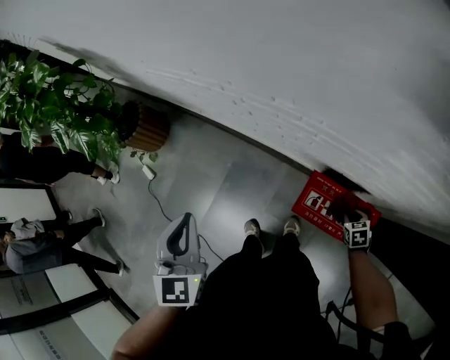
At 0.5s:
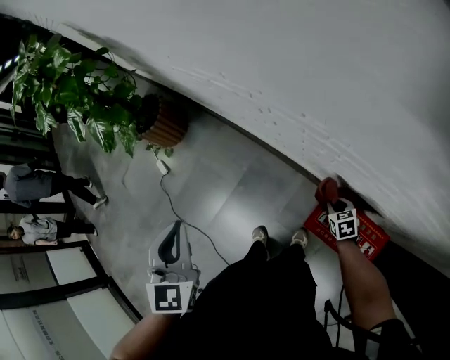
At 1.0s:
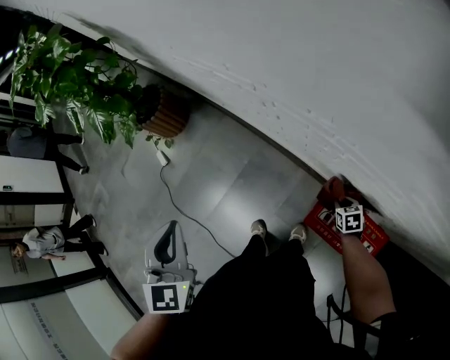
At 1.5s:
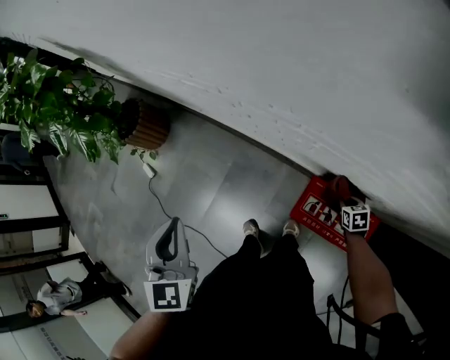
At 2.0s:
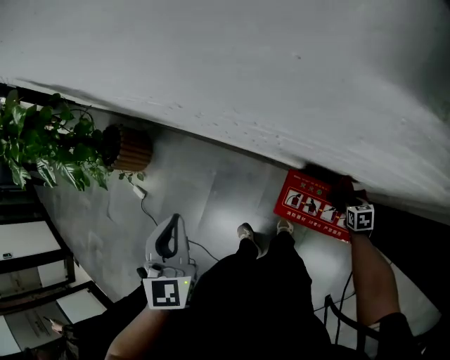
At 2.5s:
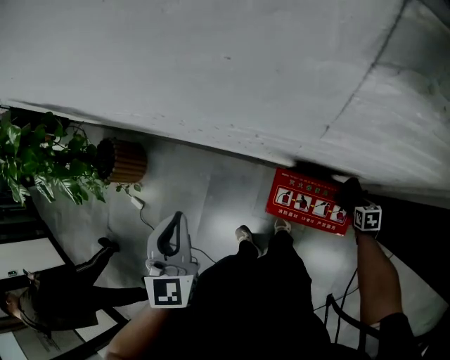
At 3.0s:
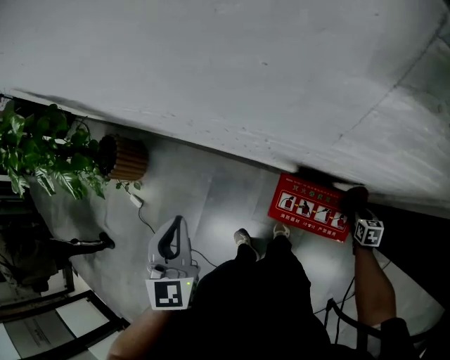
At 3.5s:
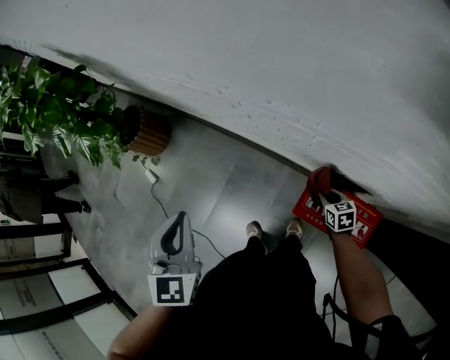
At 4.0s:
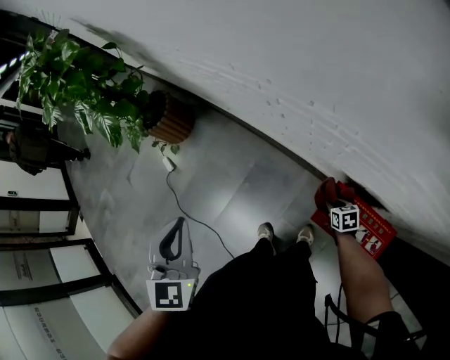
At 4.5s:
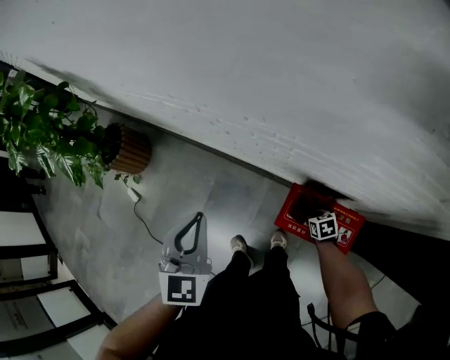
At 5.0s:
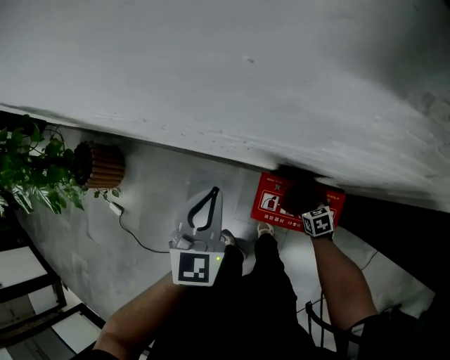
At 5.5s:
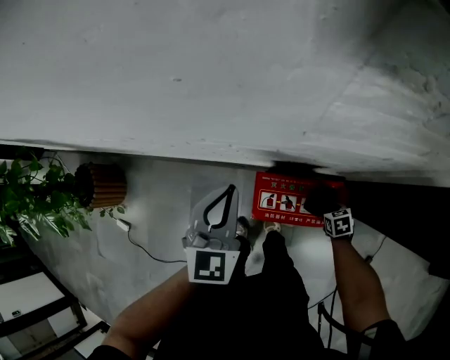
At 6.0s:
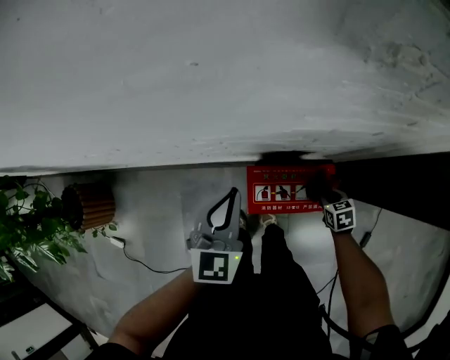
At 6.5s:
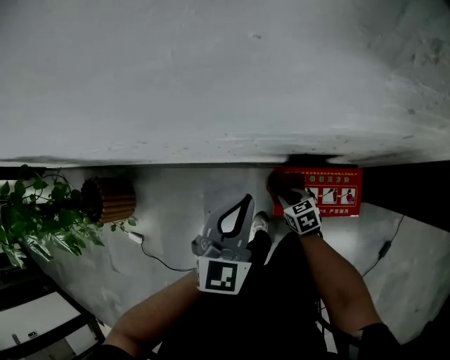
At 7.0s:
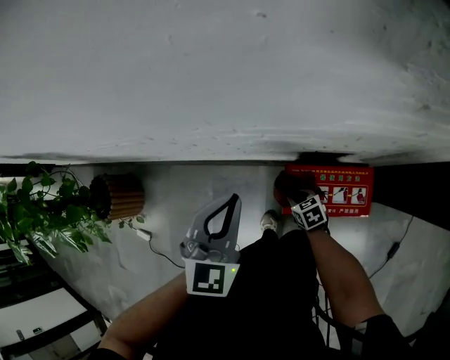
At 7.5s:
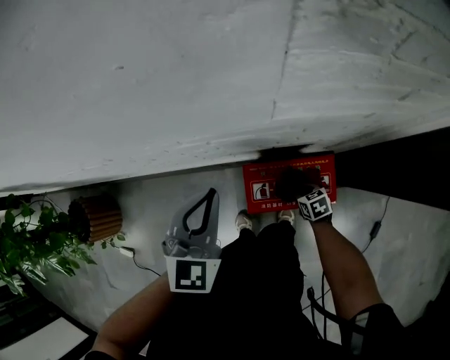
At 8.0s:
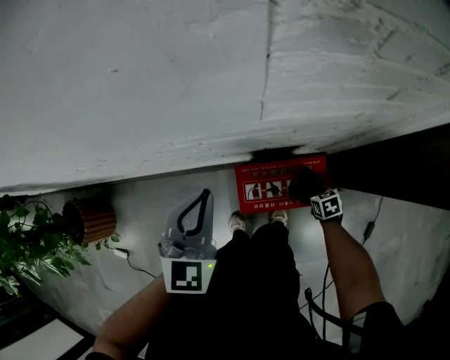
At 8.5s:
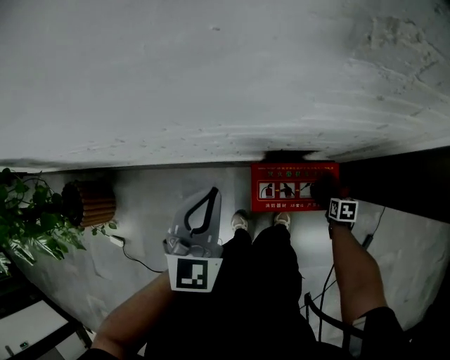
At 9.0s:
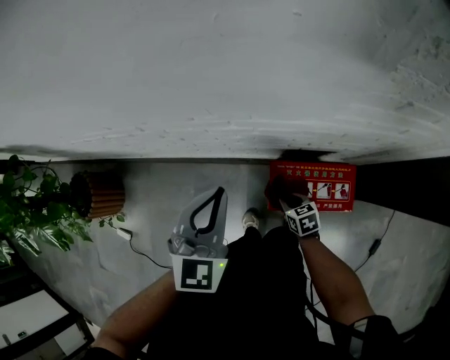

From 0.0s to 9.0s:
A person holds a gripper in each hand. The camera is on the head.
From 0.0s to 2.0s: The two grippers go some 5 cm to the right.
From 4.5s to 7.0s: The left gripper changes place by approximately 15 cm, and turns by about 30 degrees, while the right gripper reaches some 10 cm upward, then returns.
From 7.0s to 9.0s: The left gripper reaches roughly 5 cm to the right, then returns. Meanwhile the right gripper moves roughly 30 cm to the right and comes back.

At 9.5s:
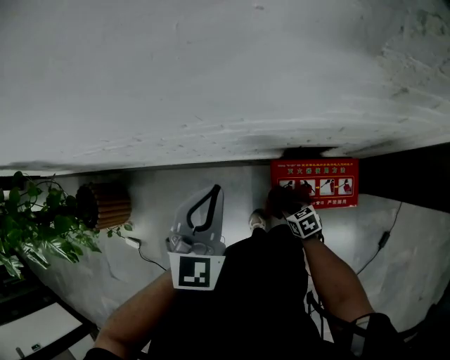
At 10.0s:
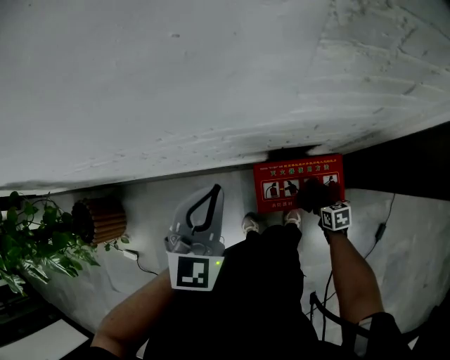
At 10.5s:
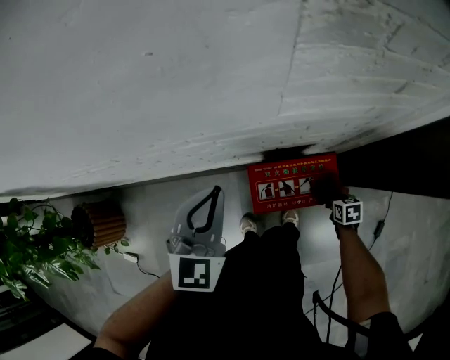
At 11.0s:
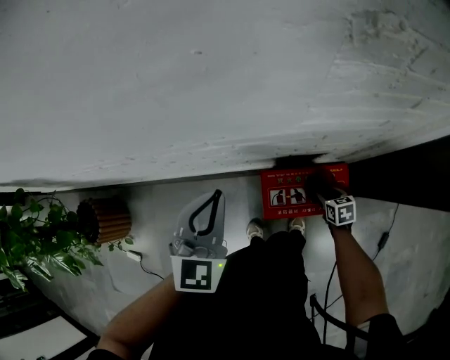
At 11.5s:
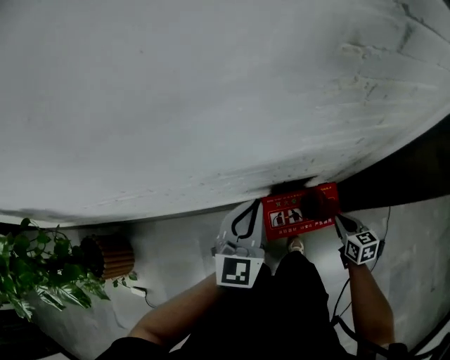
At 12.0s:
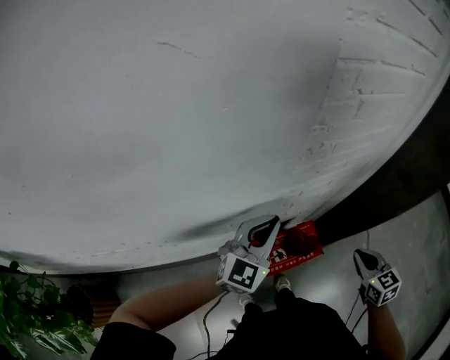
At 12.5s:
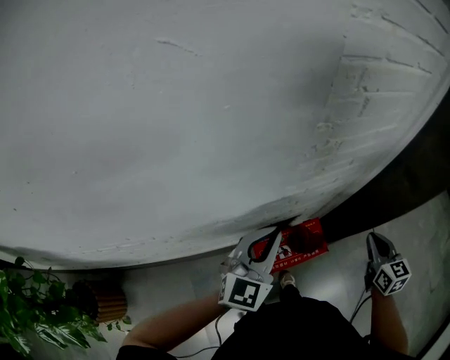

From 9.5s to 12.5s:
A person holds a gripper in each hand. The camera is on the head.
From 9.5s to 11.0s: The right gripper moves to the right, about 20 cm, swivels approximately 20 degrees, and opens up.
From 11.0s to 12.5s: The right gripper goes roughly 40 cm upward, angles its fingers upward, by approximately 30 degrees, and closes up. The left gripper ends up approximately 15 cm from where it was, and turns by approximately 30 degrees.

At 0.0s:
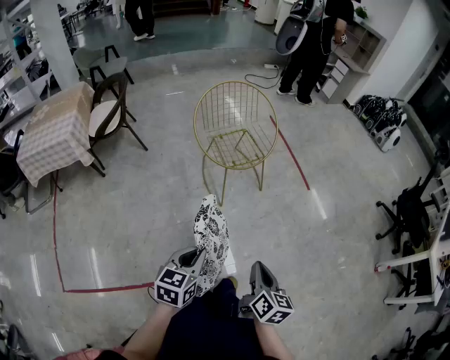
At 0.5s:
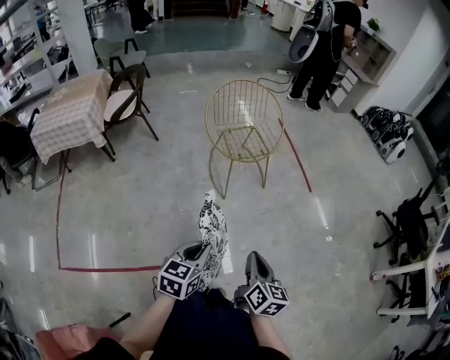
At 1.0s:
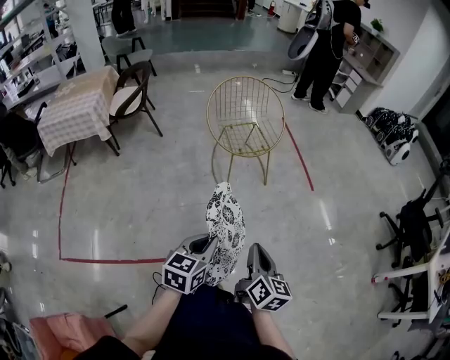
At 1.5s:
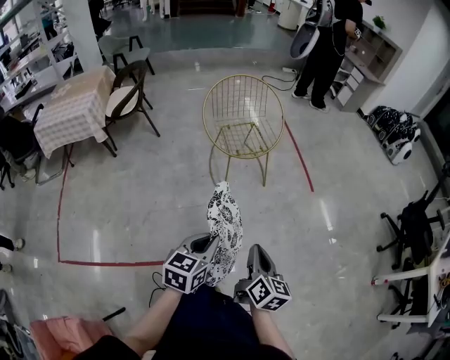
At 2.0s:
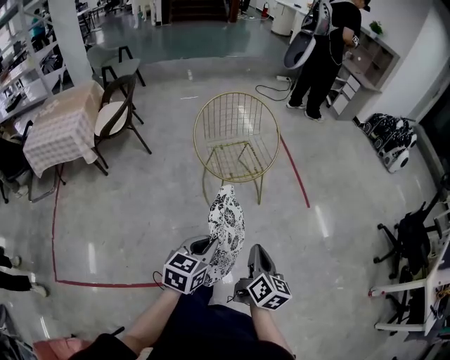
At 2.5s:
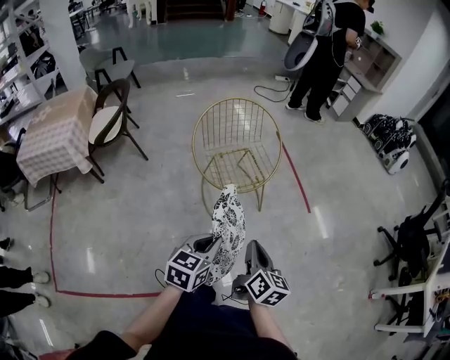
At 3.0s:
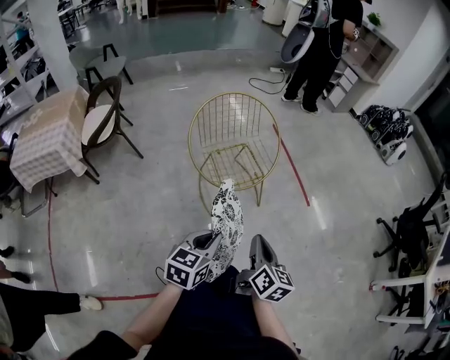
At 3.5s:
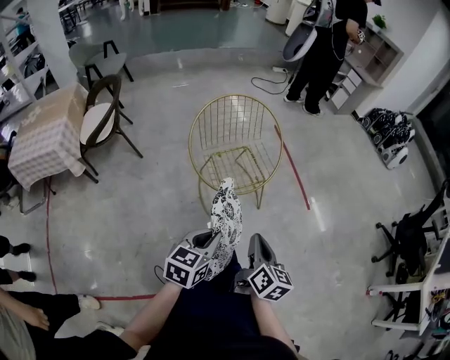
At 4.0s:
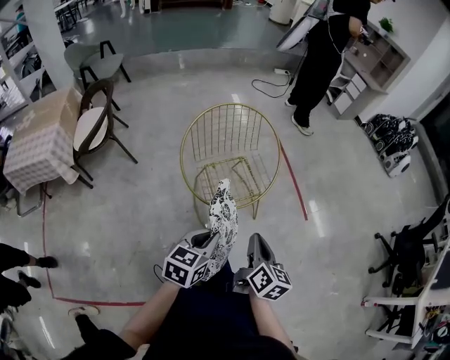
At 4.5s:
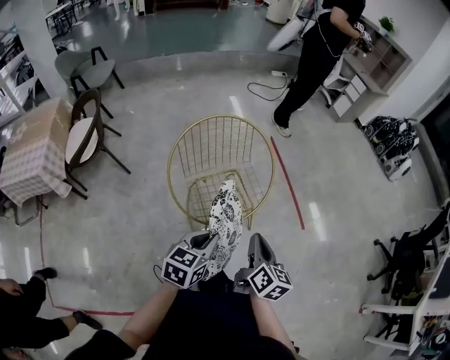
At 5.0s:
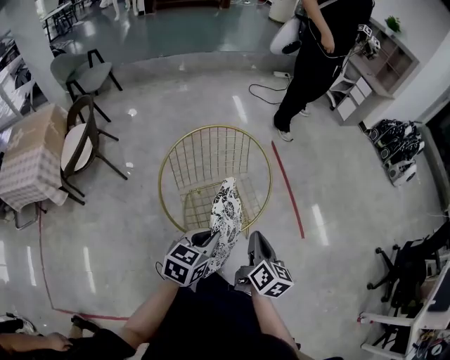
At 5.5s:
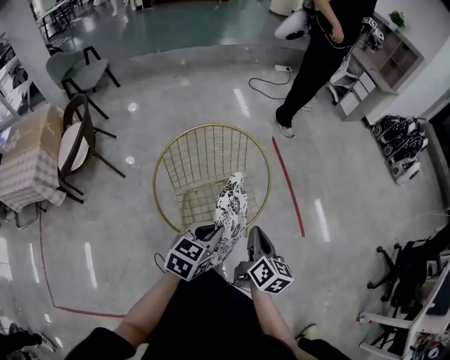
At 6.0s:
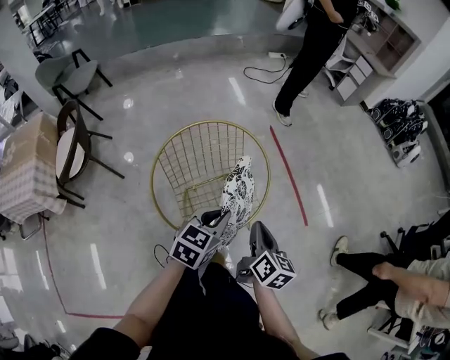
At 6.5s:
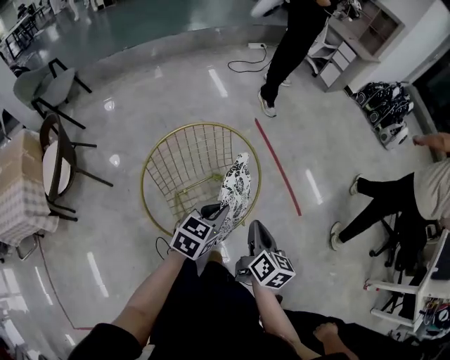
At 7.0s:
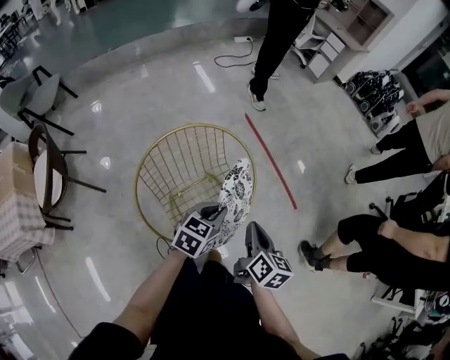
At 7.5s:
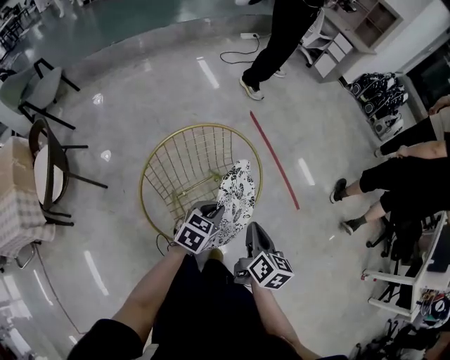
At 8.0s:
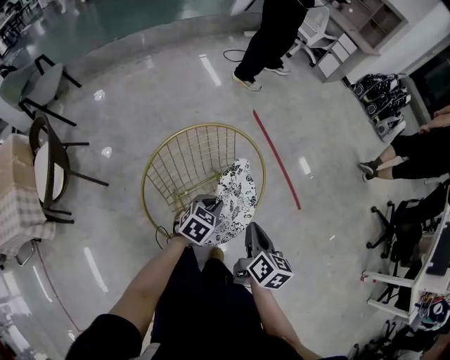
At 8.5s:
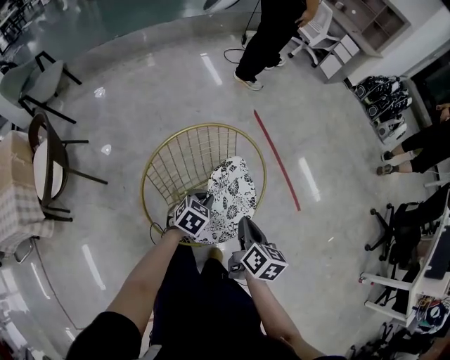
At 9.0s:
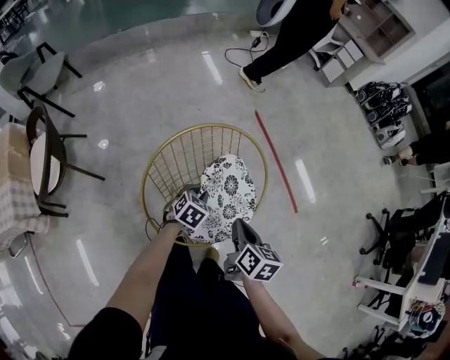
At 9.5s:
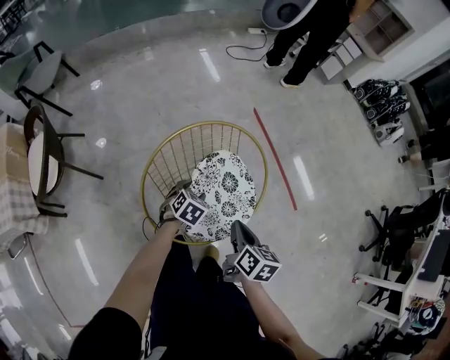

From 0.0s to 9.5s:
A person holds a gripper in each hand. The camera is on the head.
From 0.0s to 2.0s: The right gripper moves forward, approximately 10 cm. Meanwhile the left gripper shifts approximately 10 cm forward and to the right.
From 2.0s to 4.0s: Both grippers travel together forward, roughly 20 cm.
From 4.0s to 5.5s: The two grippers go some 20 cm forward.
From 5.5s to 7.5s: The left gripper goes some 15 cm forward and downward.
From 7.5s to 9.5s: The right gripper is displaced to the left by approximately 5 cm. The left gripper heads downward and to the left, covering some 15 cm, rotates some 20 degrees, and opens its fingers.

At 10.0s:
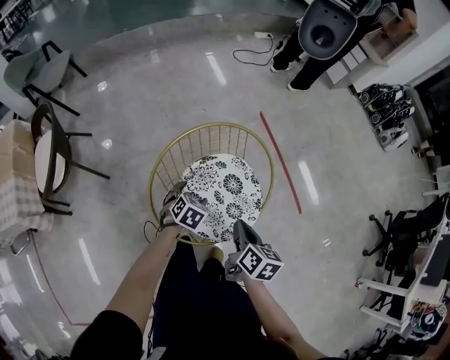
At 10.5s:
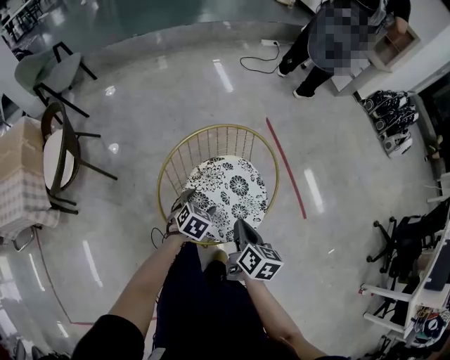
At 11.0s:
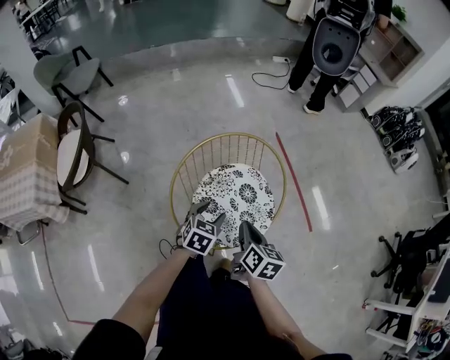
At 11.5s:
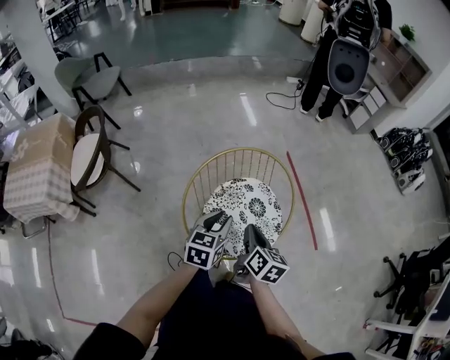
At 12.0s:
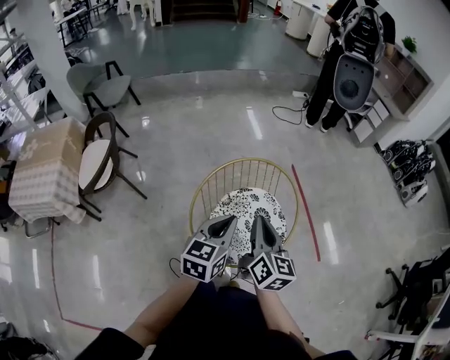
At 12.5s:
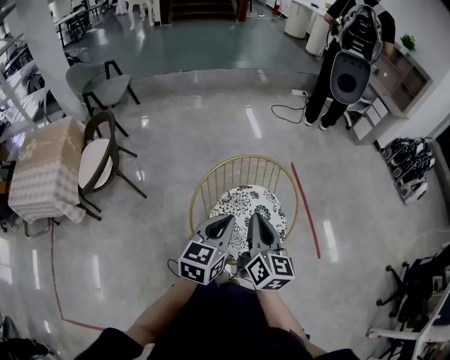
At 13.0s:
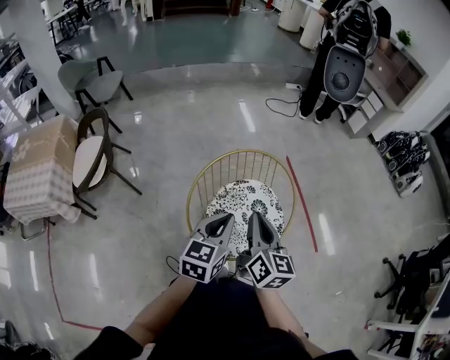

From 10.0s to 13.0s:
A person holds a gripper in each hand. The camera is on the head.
From 10.0s to 11.5s: The right gripper changes place by roughly 5 cm, while the left gripper goes some 20 cm upward and backward, swivels approximately 40 degrees, and closes up.
From 11.5s to 13.0s: Both grippers travel together upward, about 10 cm. The right gripper swivels about 20 degrees.

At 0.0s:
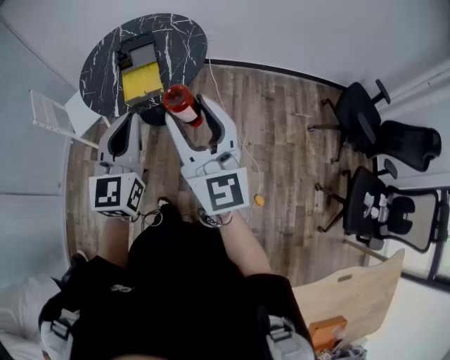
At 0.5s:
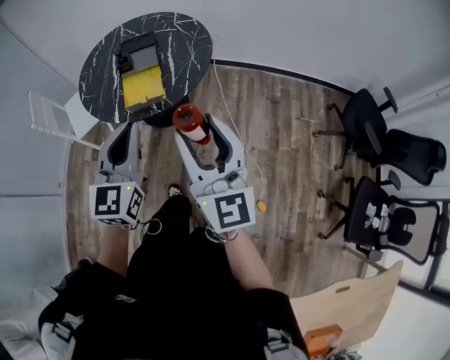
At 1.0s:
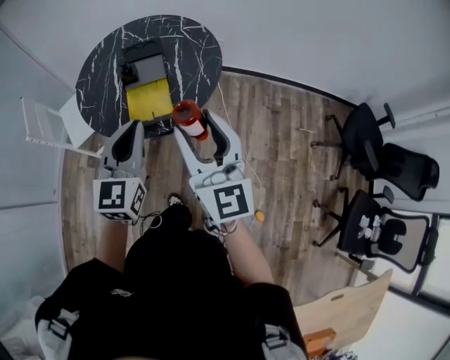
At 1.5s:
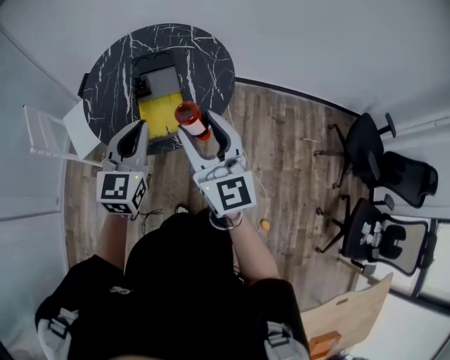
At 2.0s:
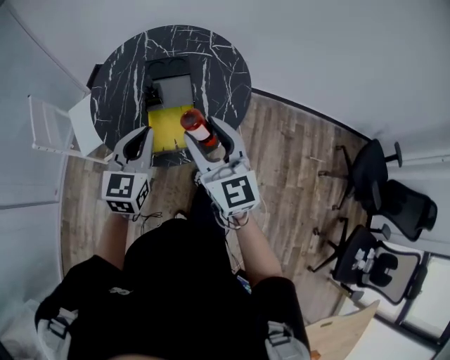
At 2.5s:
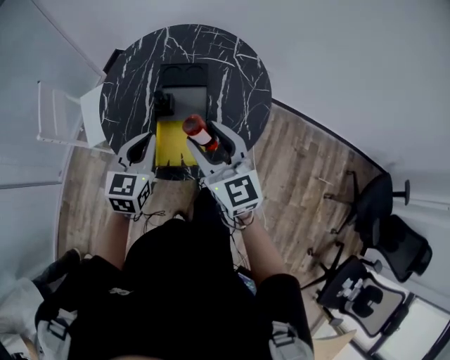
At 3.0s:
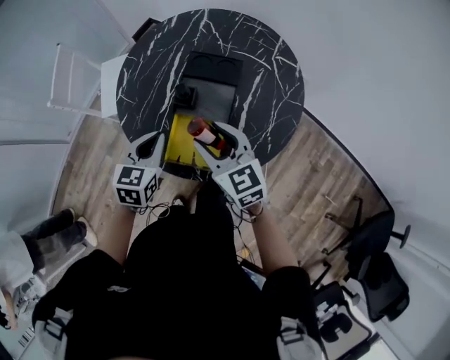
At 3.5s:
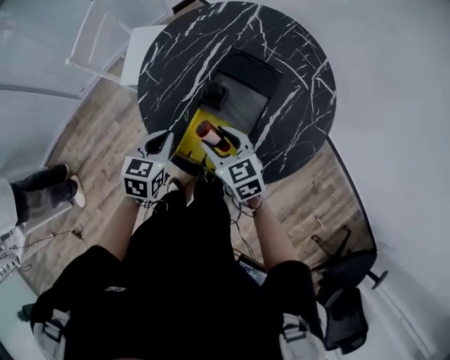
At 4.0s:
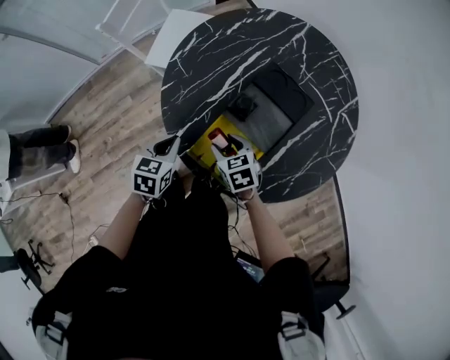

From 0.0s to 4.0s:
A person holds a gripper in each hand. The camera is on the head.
From 0.0s to 2.0s: The grippers both shift forward and to the left by roughly 35 cm. The right gripper swivels some 20 degrees.
From 2.0s to 4.0s: Both grippers move downward, roughly 30 cm. The right gripper points its fingers roughly 50 degrees further downward. The left gripper angles its fingers downward, by some 30 degrees.
